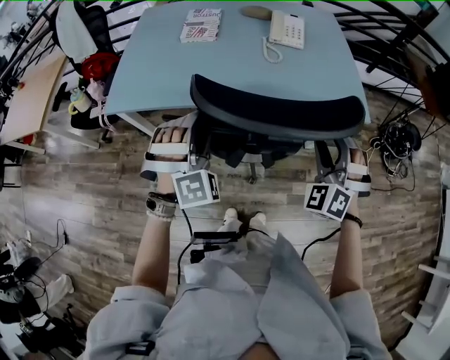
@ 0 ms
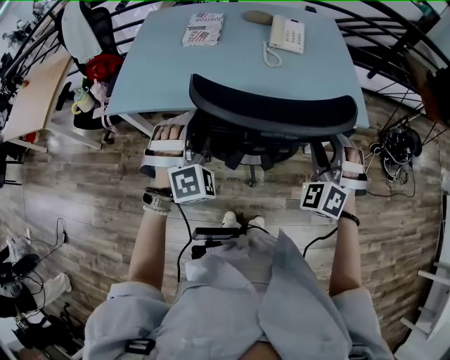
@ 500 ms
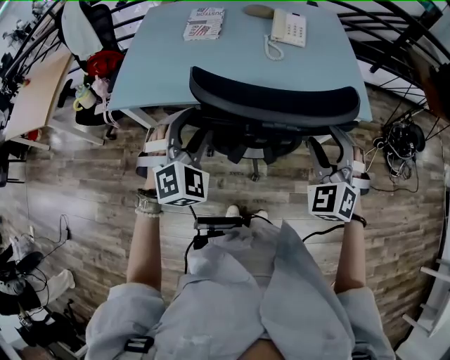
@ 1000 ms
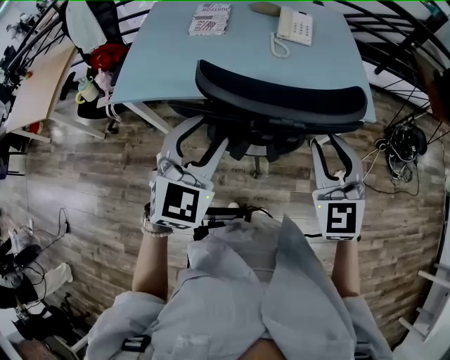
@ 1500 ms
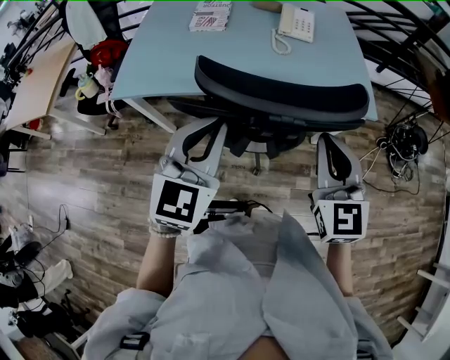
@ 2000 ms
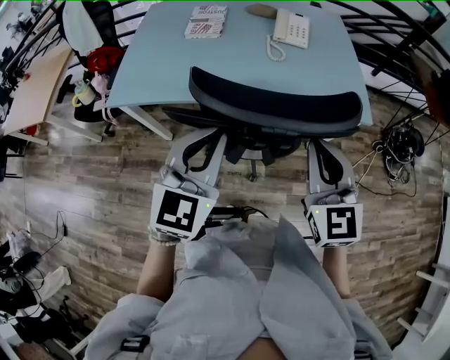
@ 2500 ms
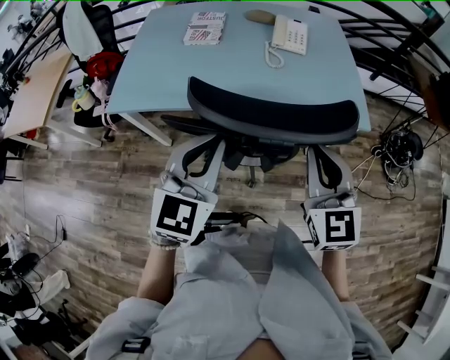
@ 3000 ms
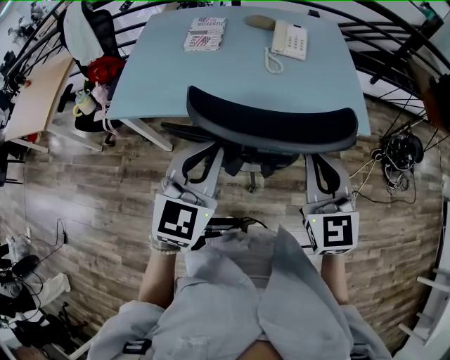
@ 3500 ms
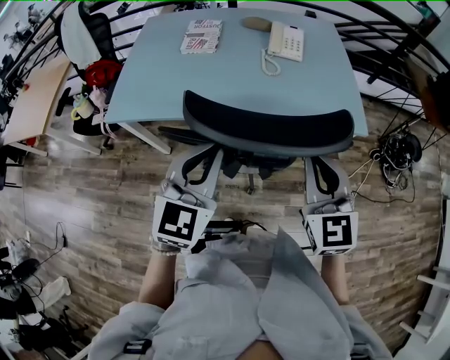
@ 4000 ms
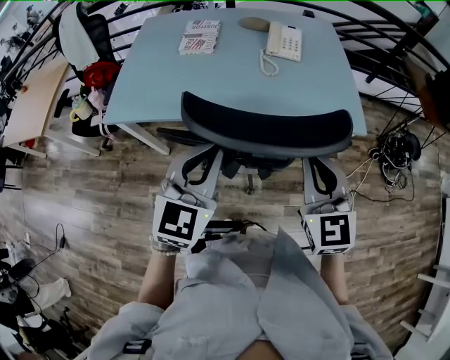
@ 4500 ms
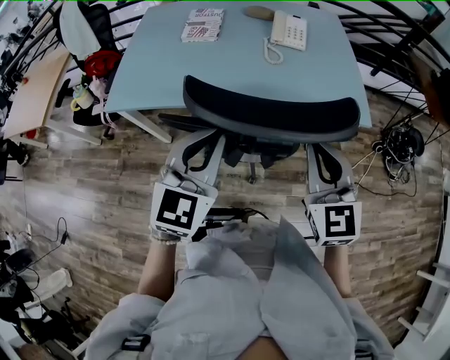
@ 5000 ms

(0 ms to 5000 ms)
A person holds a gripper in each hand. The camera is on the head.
0 ms - 2500 ms: The left gripper moves upward and backward, roughly 10 cm, rolls counterclockwise, seen from behind, by approximately 60 degrees, and closes. The right gripper is displaced upward and to the left by approximately 10 cm, rolls clockwise, seen from behind, by approximately 50 degrees, and closes its fingers.
2500 ms - 5000 ms: The grippers stay close to where they were, moving slightly.

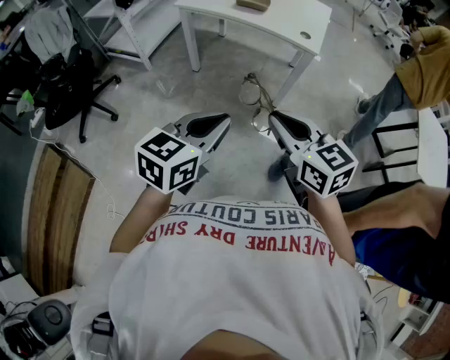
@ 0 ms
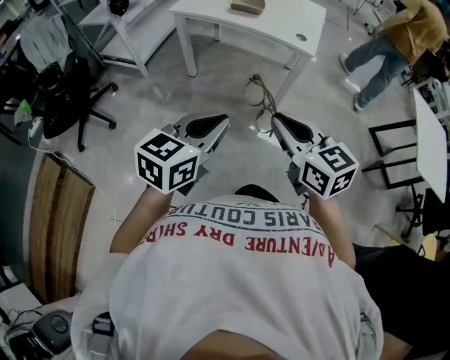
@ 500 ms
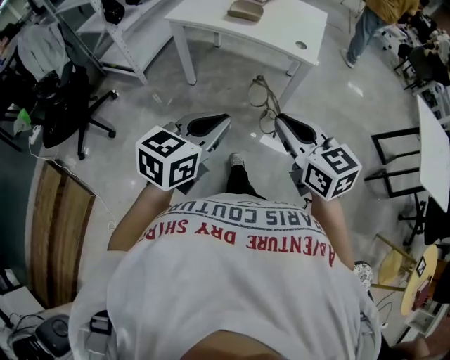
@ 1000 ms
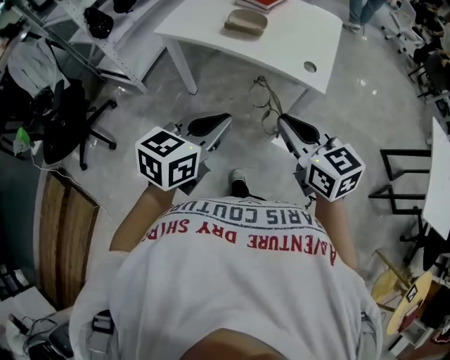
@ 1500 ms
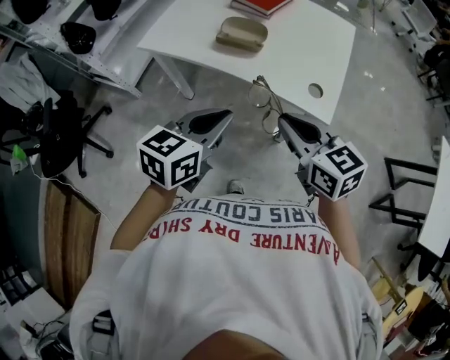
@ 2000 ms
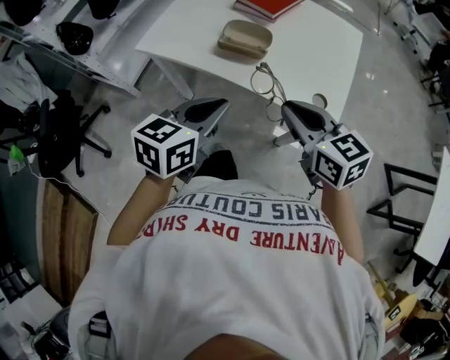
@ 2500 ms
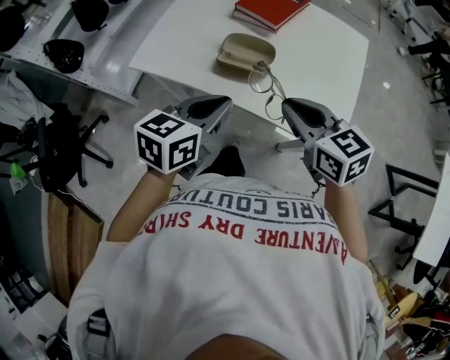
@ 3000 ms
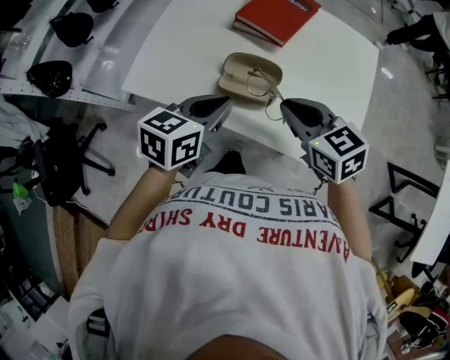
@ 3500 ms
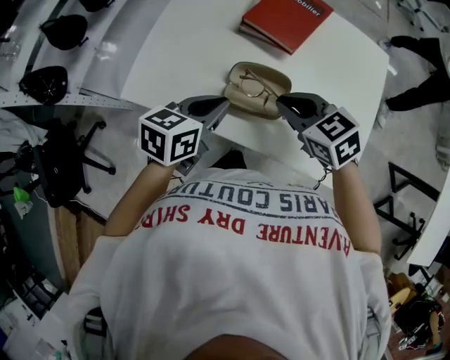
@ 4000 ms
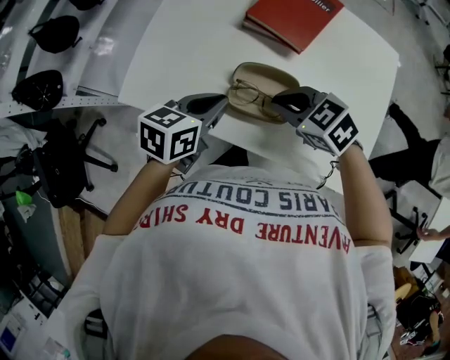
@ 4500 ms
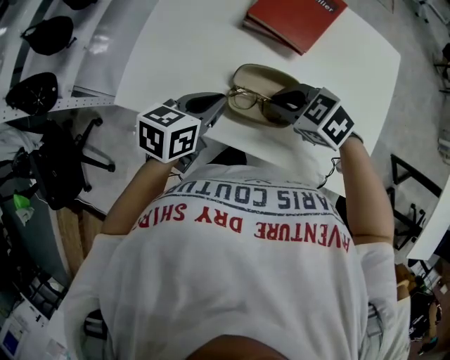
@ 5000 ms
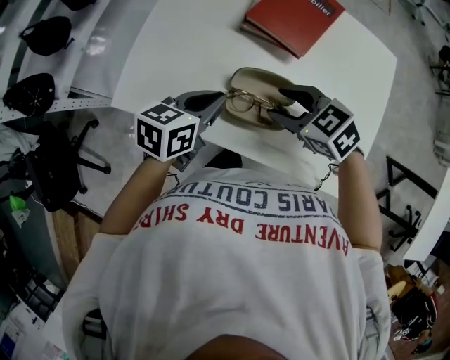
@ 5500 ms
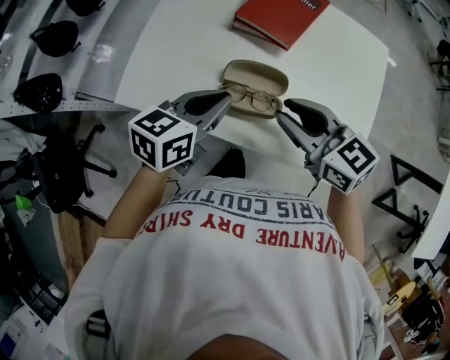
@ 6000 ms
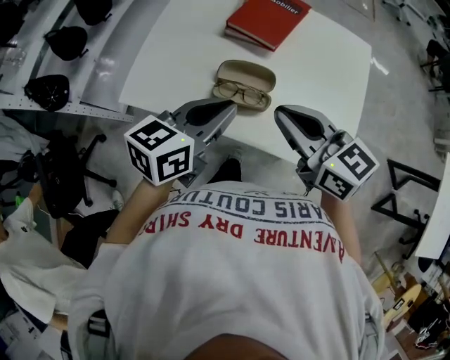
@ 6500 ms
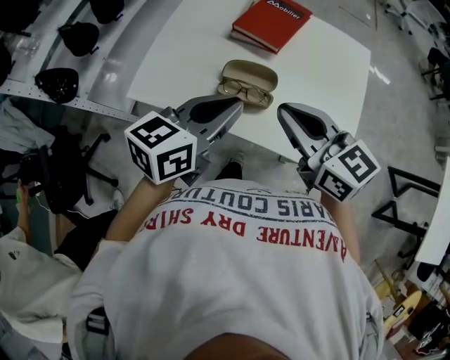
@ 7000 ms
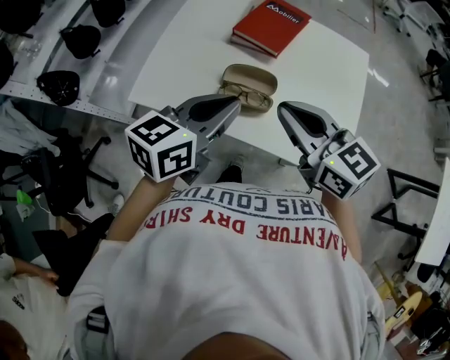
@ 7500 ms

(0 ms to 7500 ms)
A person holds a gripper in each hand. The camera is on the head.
0 ms - 2000 ms: The pair of grippers is taken forward, roughly 40 cm.
2000 ms - 4000 ms: The grippers both shift forward by about 30 cm. The right gripper swivels some 20 degrees.
4000 ms - 5500 ms: The left gripper changes place by roughly 5 cm. The right gripper opens up.
5500 ms - 7500 ms: Both grippers travel together upward and backward, roughly 20 cm. The right gripper tilts its fingers approximately 30 degrees upward, and closes up.

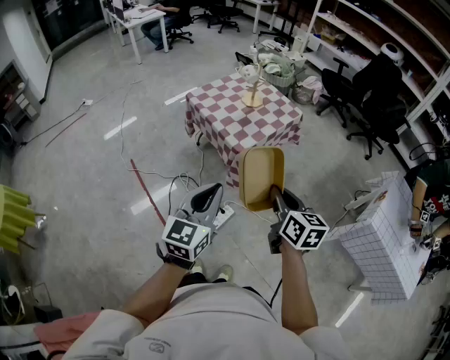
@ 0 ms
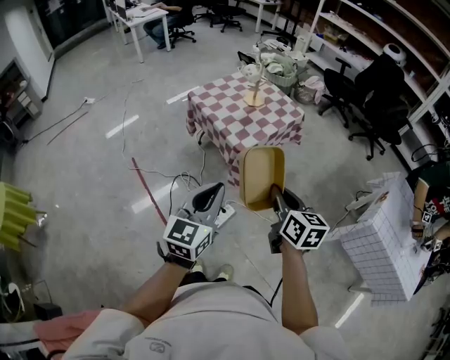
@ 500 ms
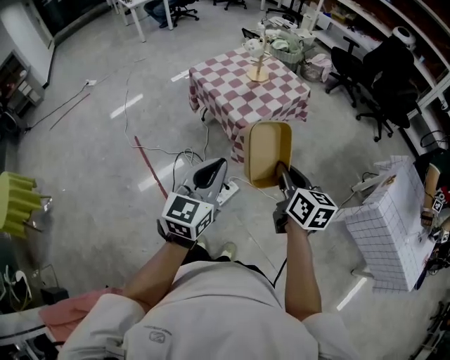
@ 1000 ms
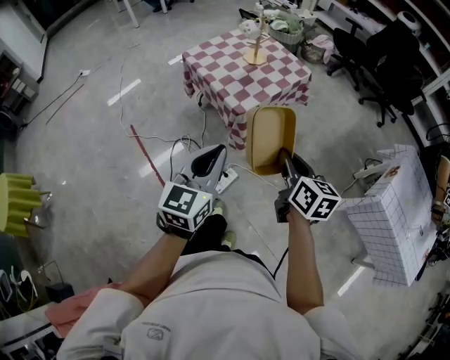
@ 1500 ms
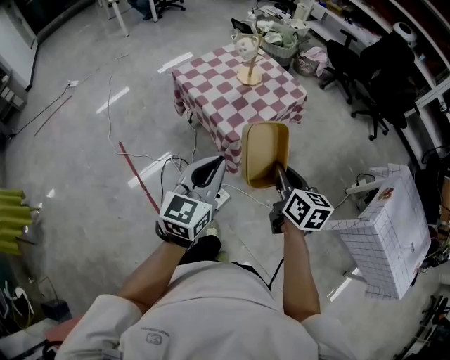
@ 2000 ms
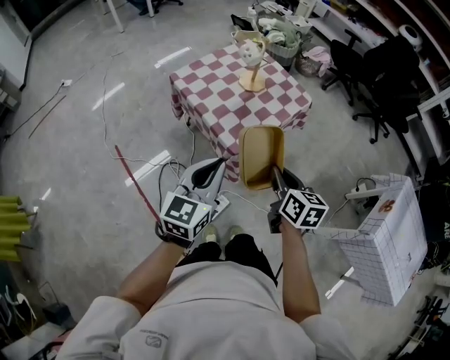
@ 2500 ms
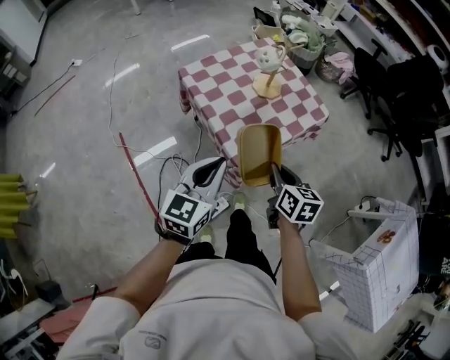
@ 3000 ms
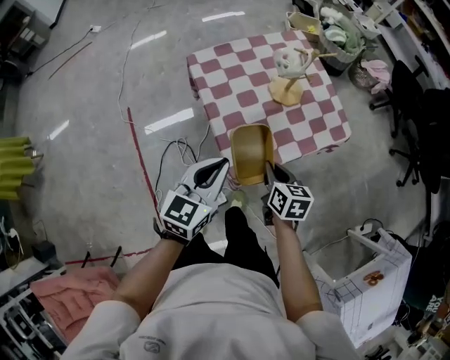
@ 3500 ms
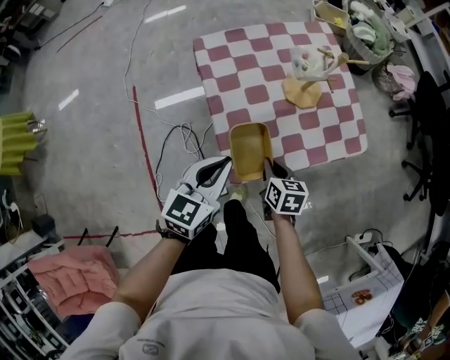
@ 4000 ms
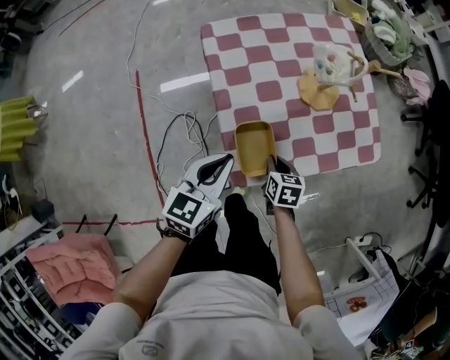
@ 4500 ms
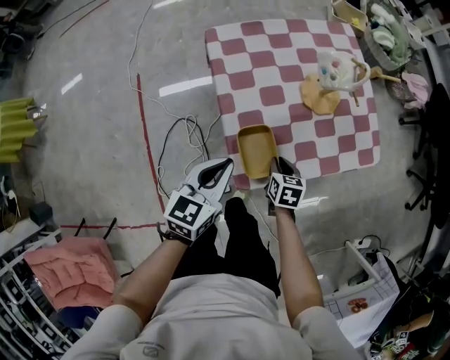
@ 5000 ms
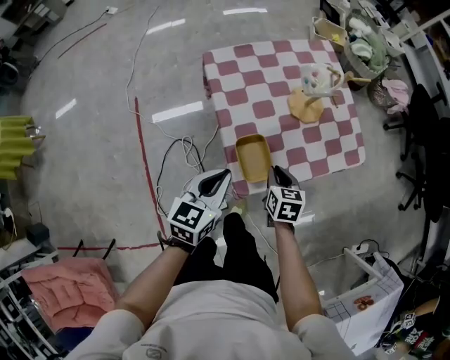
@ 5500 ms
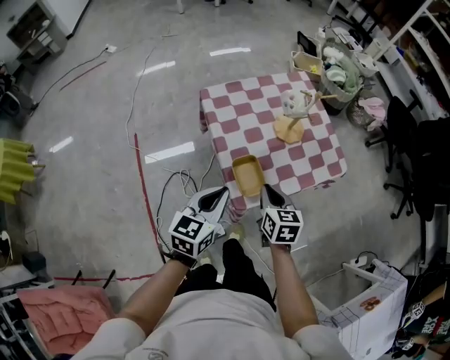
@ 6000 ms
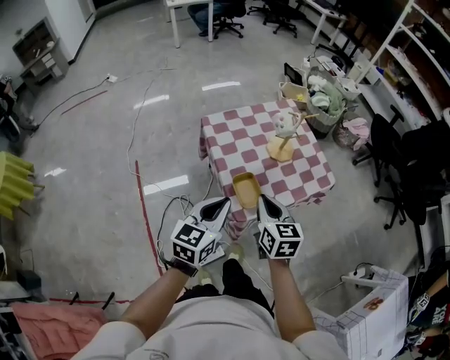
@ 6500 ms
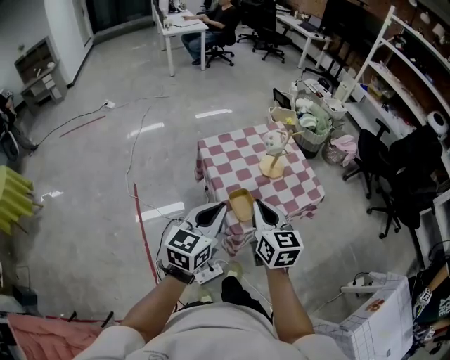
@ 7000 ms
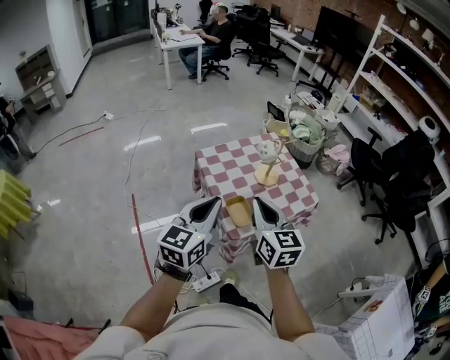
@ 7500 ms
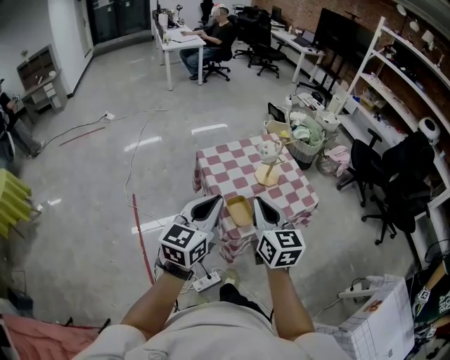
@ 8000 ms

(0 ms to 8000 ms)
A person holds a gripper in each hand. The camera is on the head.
0 ms - 2000 ms: Both grippers move forward, roughly 15 cm.
2000 ms - 4000 ms: The two grippers go roughly 40 cm forward and downward. The right gripper swivels about 40 degrees. Meanwhile the left gripper changes its angle by about 20 degrees.
4000 ms - 6000 ms: The left gripper goes roughly 10 cm upward and backward. The right gripper goes approximately 15 cm upward.
6000 ms - 8000 ms: The two grippers go roughly 25 cm upward. The left gripper rotates about 20 degrees. Meanwhile the right gripper swivels roughly 30 degrees.

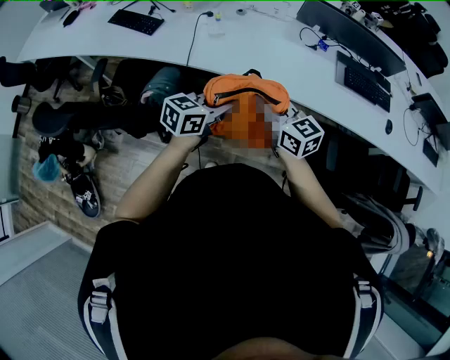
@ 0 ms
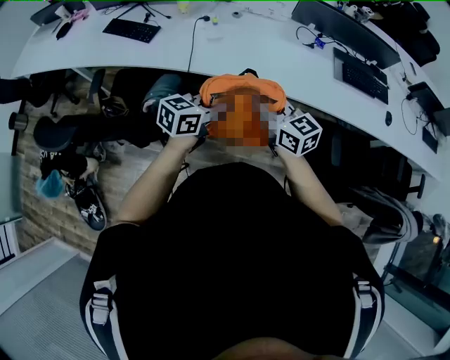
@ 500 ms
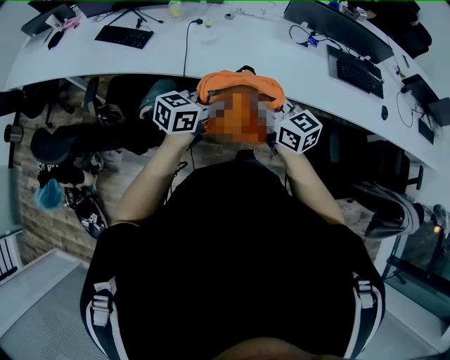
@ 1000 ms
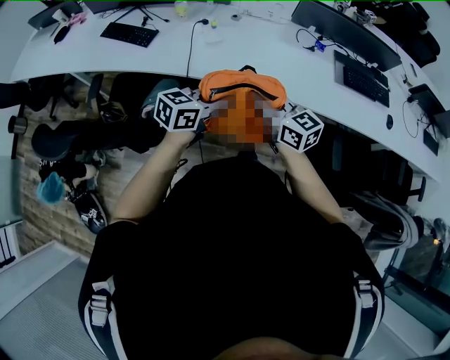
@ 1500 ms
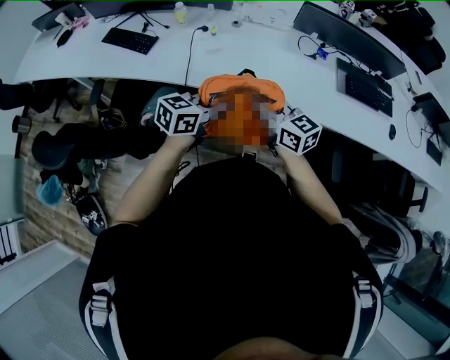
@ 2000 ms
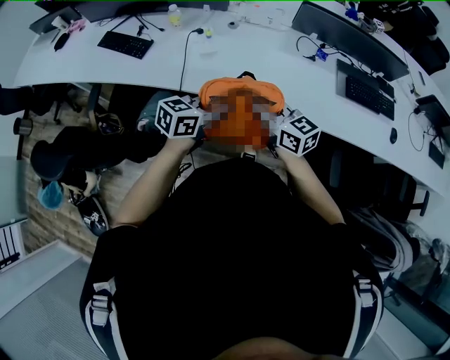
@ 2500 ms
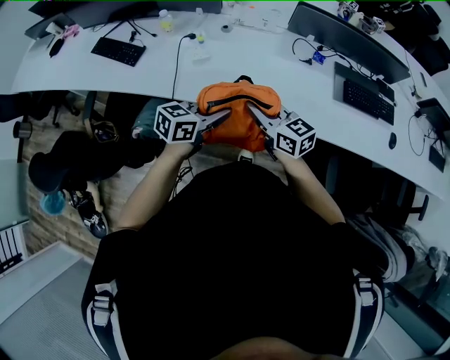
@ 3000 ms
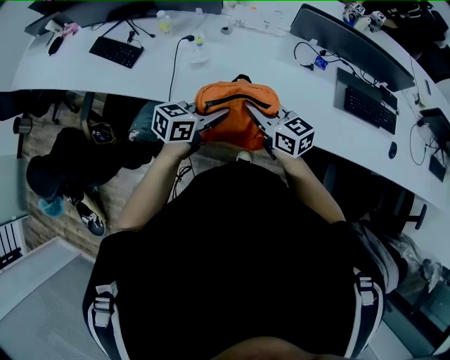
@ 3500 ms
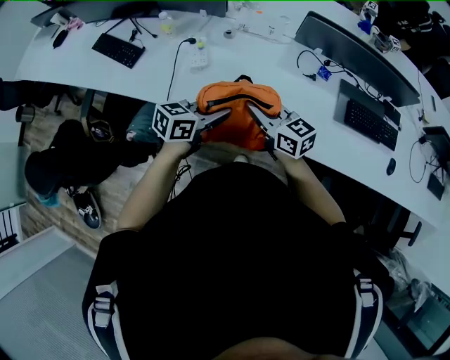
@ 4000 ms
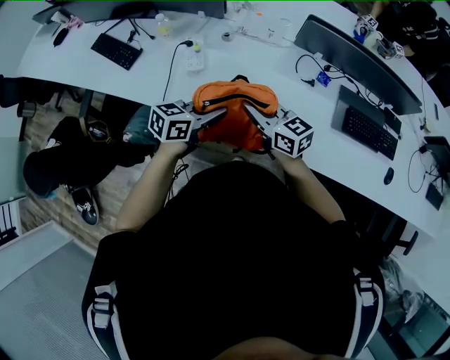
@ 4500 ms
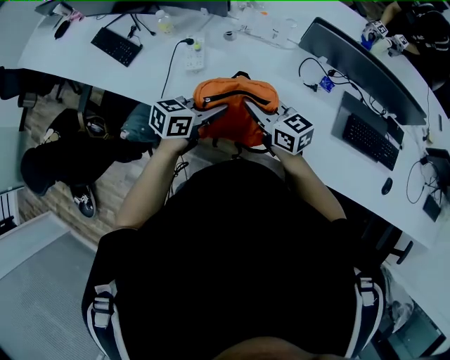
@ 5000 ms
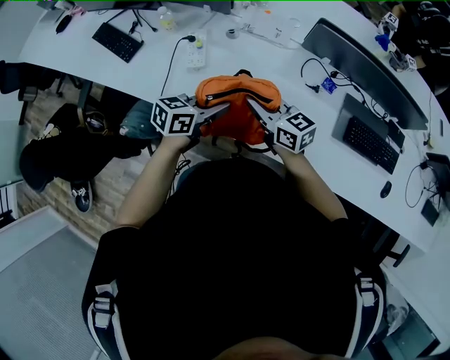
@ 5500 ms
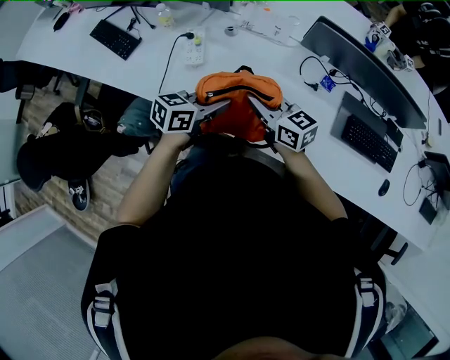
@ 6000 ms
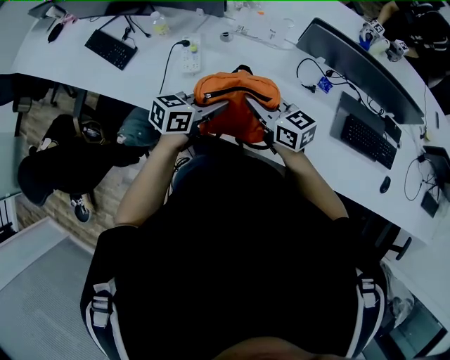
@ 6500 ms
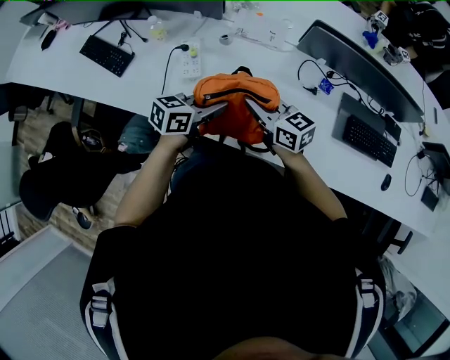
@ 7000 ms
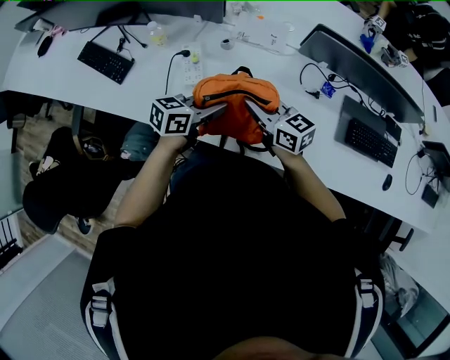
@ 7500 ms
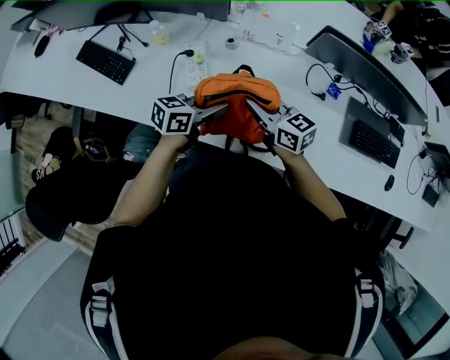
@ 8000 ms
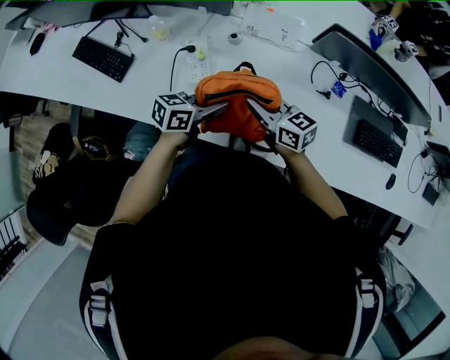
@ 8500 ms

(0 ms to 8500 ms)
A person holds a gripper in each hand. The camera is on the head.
0 ms - 2000 ms: The grippers both shift forward by some 5 cm.
2000 ms - 4000 ms: Both grippers travel together forward and to the right, about 20 cm.
4000 ms - 6500 ms: Both grippers travel together forward, roughly 10 cm.
6500 ms - 8500 ms: Both grippers travel together to the left, forward and downward, about 15 cm.
